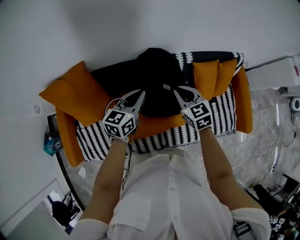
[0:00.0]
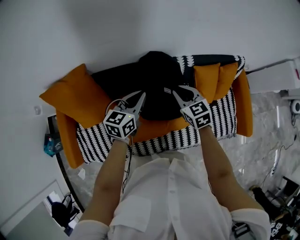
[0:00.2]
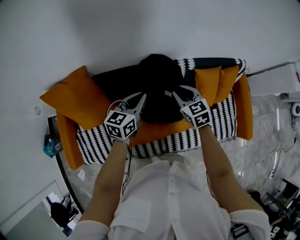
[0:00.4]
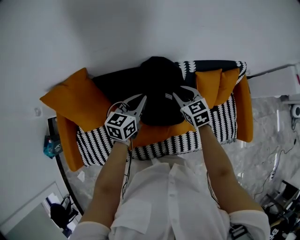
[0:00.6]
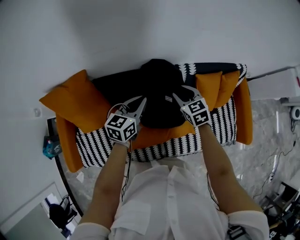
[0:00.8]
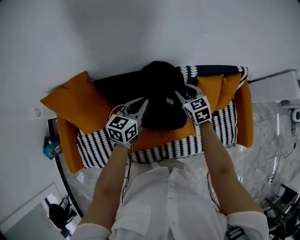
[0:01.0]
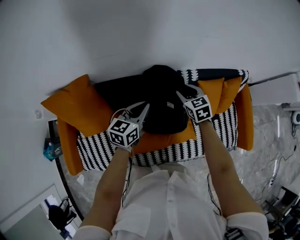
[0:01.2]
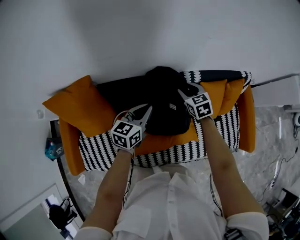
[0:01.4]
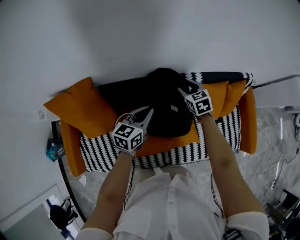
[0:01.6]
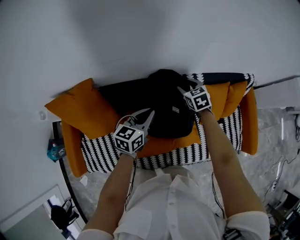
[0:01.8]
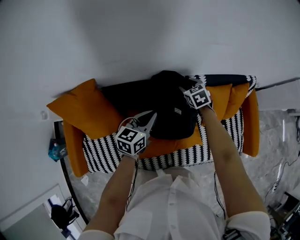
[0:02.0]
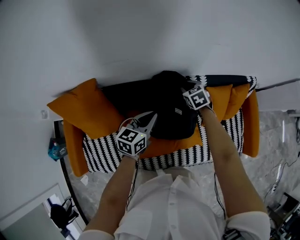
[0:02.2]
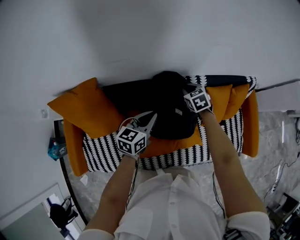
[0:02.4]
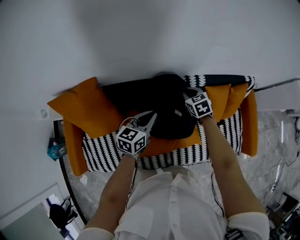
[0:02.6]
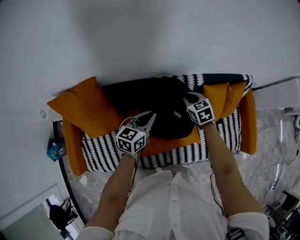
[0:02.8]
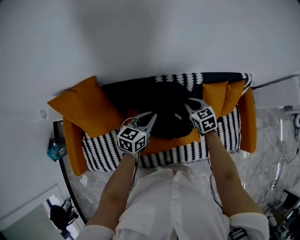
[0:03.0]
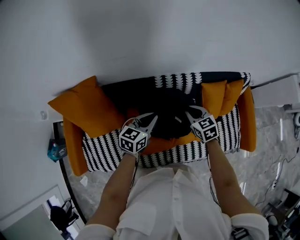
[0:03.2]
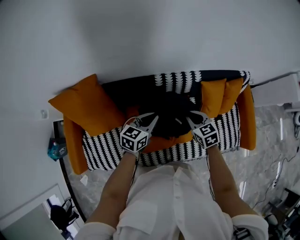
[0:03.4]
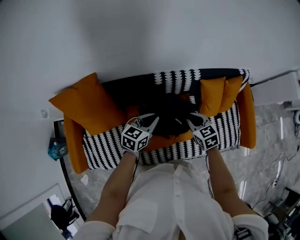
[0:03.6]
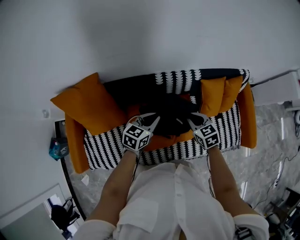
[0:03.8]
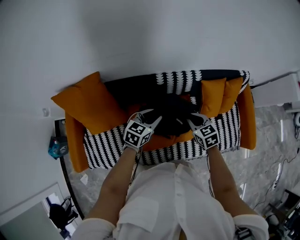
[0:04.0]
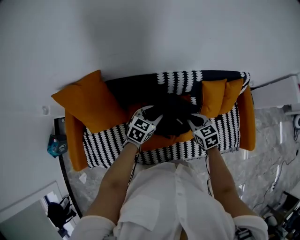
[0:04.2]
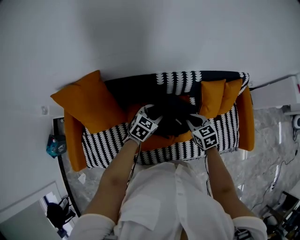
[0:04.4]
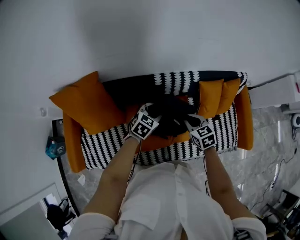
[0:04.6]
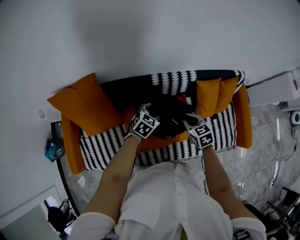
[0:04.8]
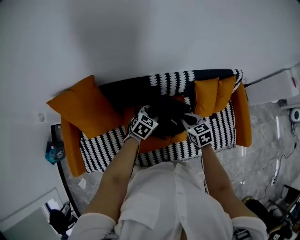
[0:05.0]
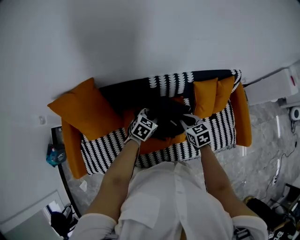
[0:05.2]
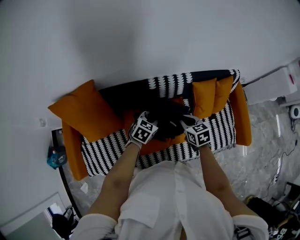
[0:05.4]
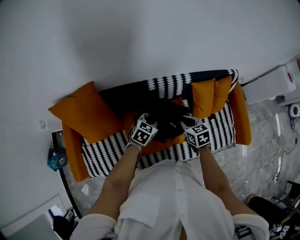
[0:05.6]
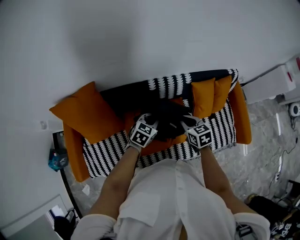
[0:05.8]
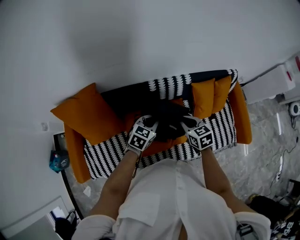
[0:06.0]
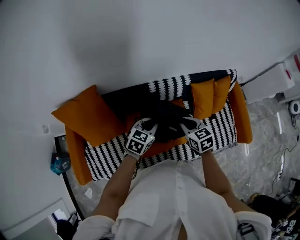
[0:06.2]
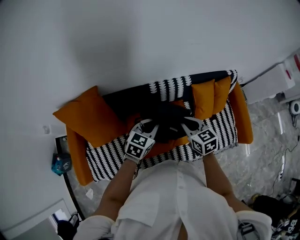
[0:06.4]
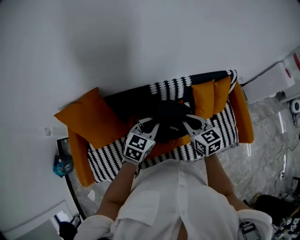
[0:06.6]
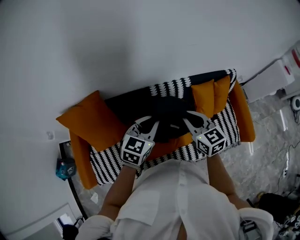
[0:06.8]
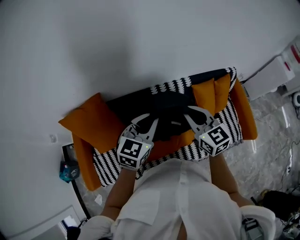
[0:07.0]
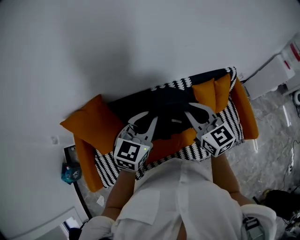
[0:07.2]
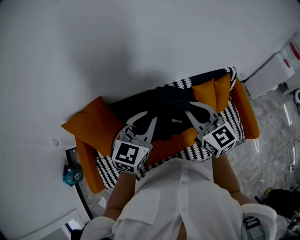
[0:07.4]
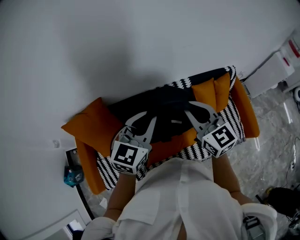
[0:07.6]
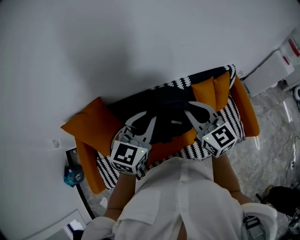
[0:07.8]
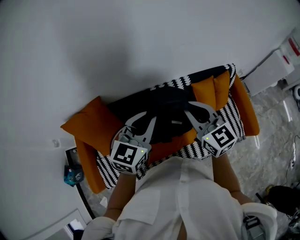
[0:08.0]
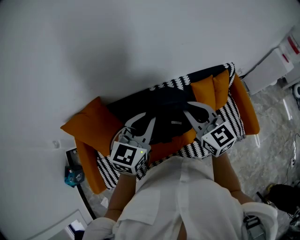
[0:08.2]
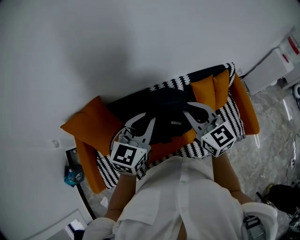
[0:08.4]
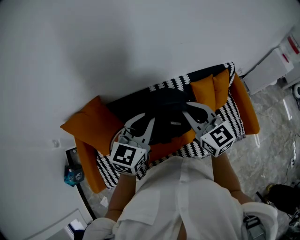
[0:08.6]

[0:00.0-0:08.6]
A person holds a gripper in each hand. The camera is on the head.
0:00.0 to 0:01.4: The right gripper heads forward and downward, covering roughly 15 cm, and opens up; the left gripper changes place by some 5 cm.
0:01.4 to 0:02.8: The right gripper closes up.
0:02.8 to 0:04.4: The left gripper is displaced downward by about 5 cm, swivels about 30 degrees, and opens up, while the right gripper is displaced backward by about 15 cm.
0:04.4 to 0:05.8: The left gripper closes up.
0:05.8 to 0:07.2: Both grippers travel together upward, roughly 25 cm. The left gripper rotates approximately 30 degrees, while the right gripper points its fingers some 30 degrees further upward.
0:07.2 to 0:08.6: The grippers move only a little.

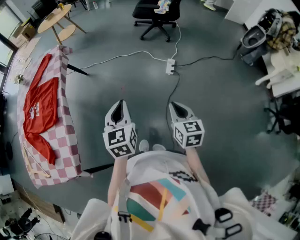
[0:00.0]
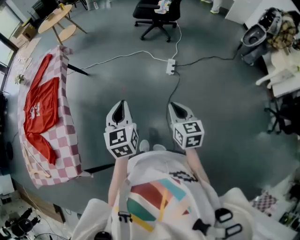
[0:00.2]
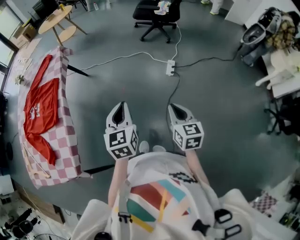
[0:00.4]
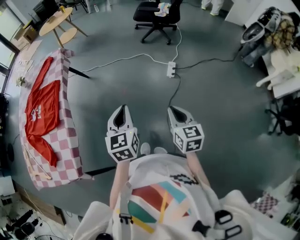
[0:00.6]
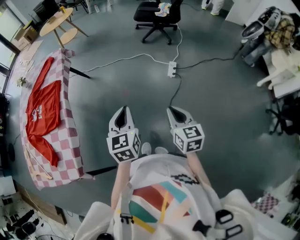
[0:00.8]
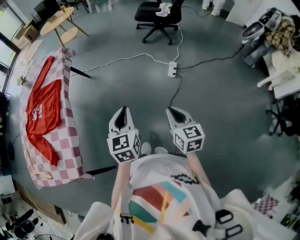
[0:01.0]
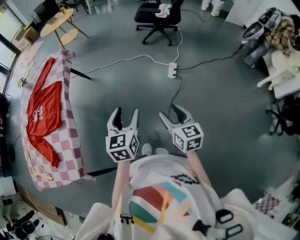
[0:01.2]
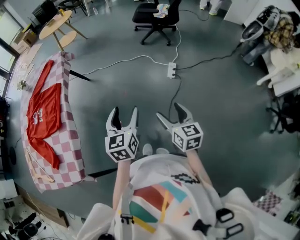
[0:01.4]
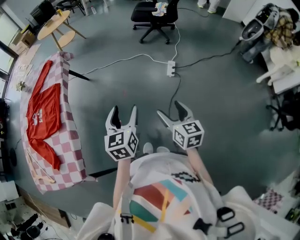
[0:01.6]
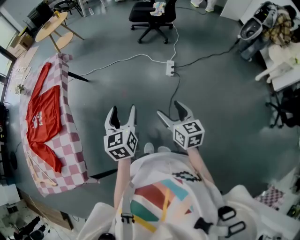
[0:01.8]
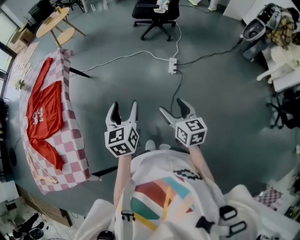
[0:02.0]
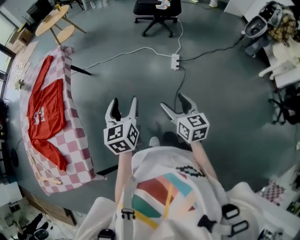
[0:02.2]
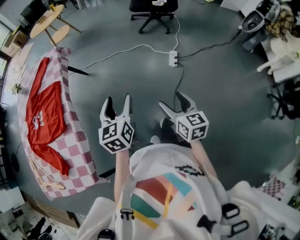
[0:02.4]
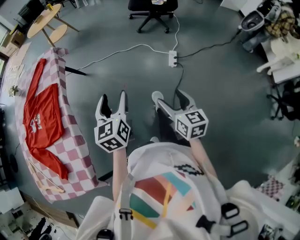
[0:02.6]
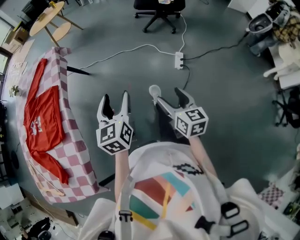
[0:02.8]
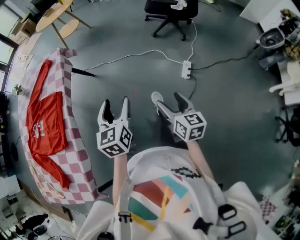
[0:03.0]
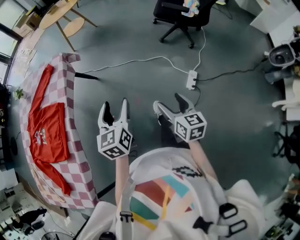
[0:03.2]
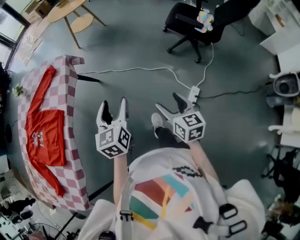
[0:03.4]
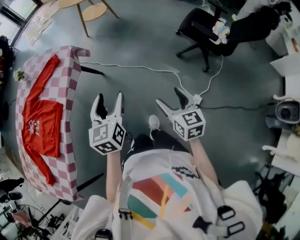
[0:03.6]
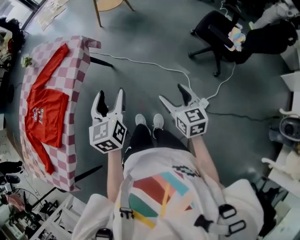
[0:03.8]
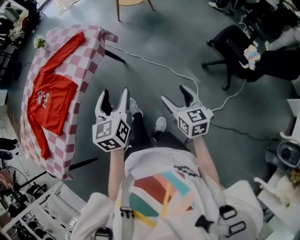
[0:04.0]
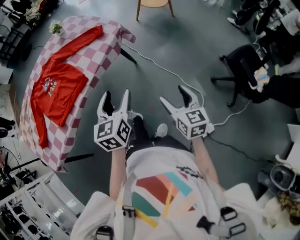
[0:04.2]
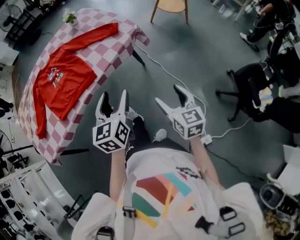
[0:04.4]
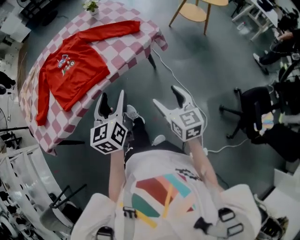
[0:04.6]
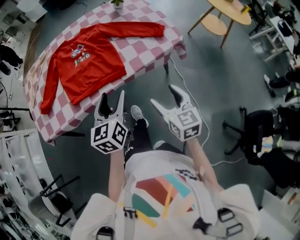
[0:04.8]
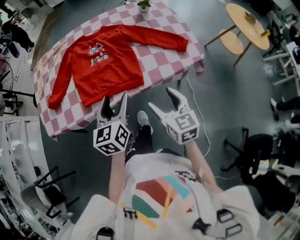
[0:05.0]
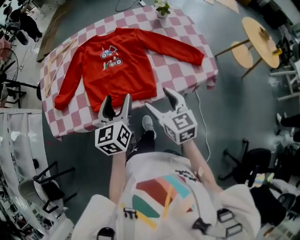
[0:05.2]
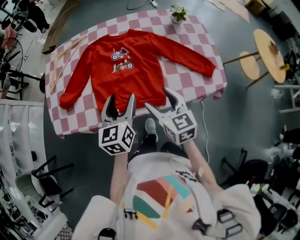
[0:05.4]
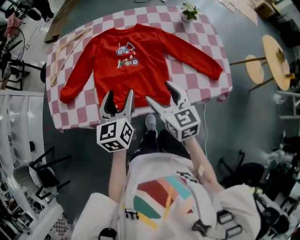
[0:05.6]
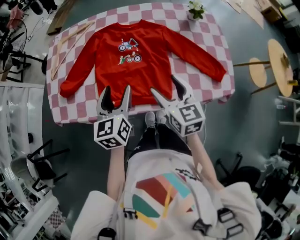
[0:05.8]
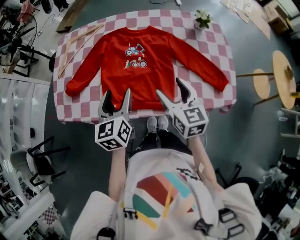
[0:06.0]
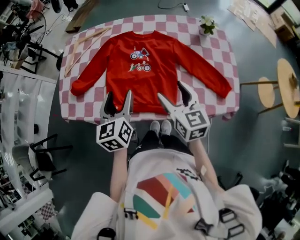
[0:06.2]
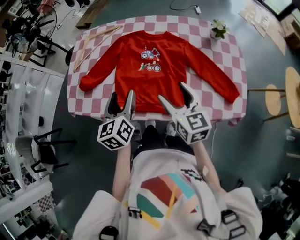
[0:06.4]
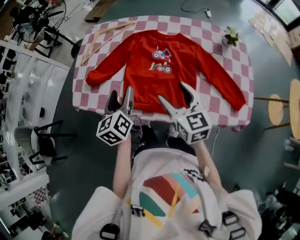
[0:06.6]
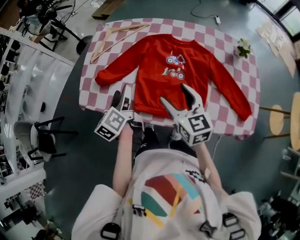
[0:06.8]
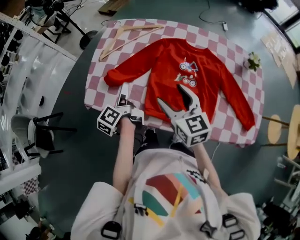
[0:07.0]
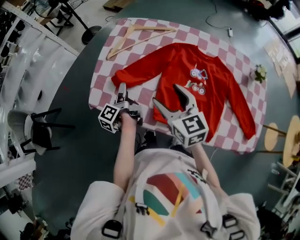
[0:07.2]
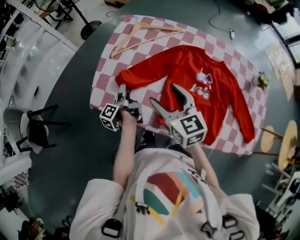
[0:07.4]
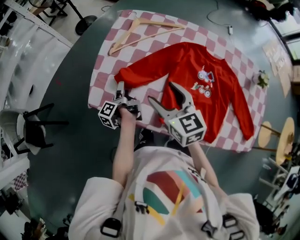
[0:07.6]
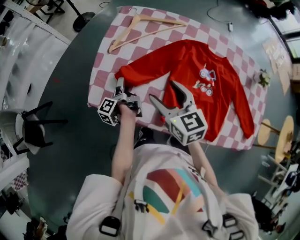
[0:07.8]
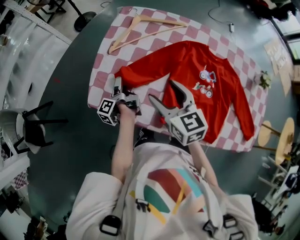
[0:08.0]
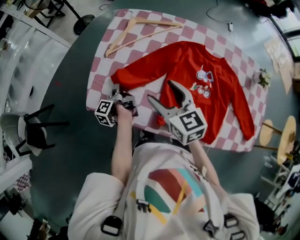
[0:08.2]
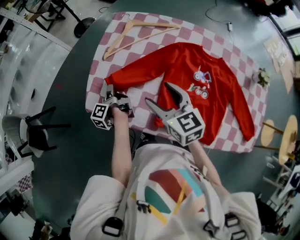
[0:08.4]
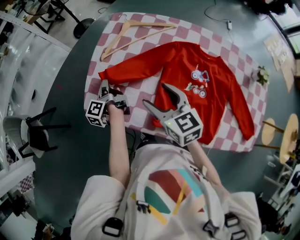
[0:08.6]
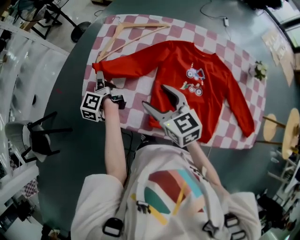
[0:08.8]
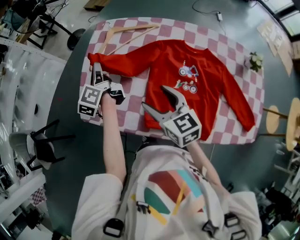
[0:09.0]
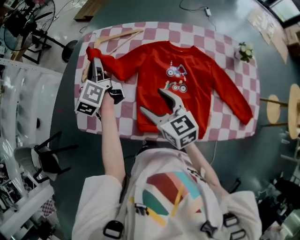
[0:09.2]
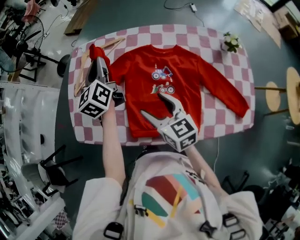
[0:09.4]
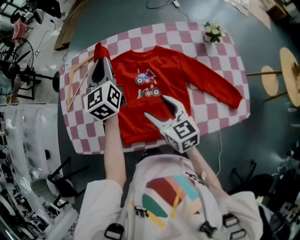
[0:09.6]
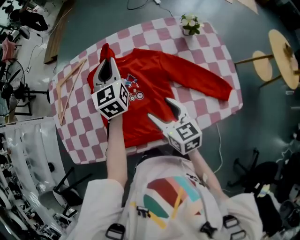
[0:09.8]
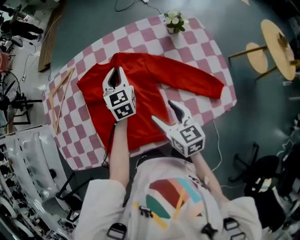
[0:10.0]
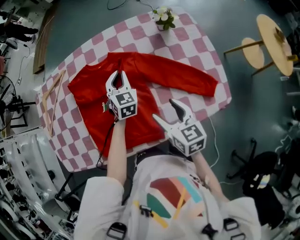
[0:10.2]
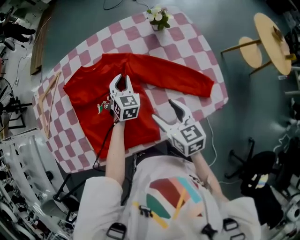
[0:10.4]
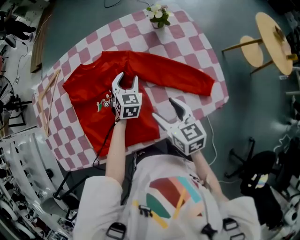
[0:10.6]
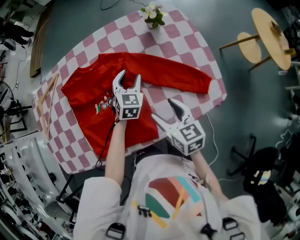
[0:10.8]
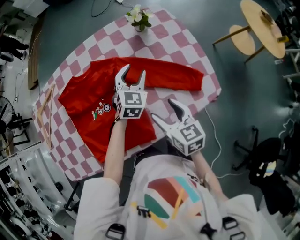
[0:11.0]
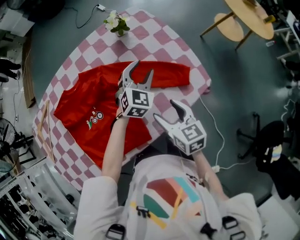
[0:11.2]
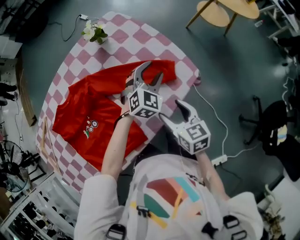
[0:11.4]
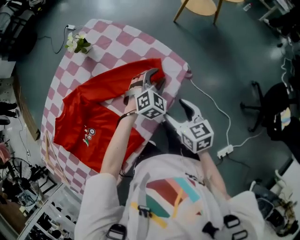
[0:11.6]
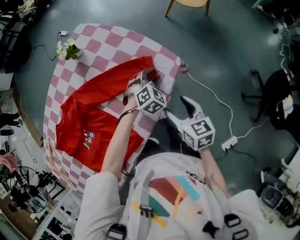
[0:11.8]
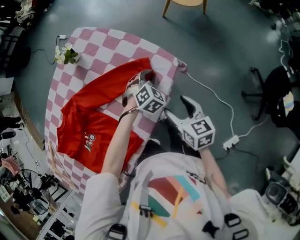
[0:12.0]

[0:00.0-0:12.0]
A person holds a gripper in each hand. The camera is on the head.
0:00.0 to 0:01.6: The left gripper opens its fingers. Meanwhile the right gripper opens its fingers.
0:01.6 to 0:03.0: The right gripper shifts roughly 20 cm forward. The left gripper goes about 25 cm forward and to the left.
0:03.0 to 0:04.4: The right gripper moves approximately 40 cm, and changes its angle by approximately 60 degrees; the left gripper changes place by approximately 30 cm, and turns by about 50 degrees.
0:04.4 to 0:06.0: The right gripper moves some 50 cm, and swivels roughly 40 degrees, while the left gripper moves some 40 cm, and swivels approximately 50 degrees.
0:06.0 to 0:07.6: The right gripper moves roughly 35 cm, and swivels some 30 degrees. The left gripper changes place by roughly 40 cm, and twists approximately 90 degrees counterclockwise, seen from behind.
0:07.6 to 0:09.0: The left gripper heads upward, forward and to the right, covering approximately 20 cm, rolls clockwise, seen from behind, by some 50 degrees, and closes up, while the right gripper moves to the right, some 5 cm.
0:09.0 to 0:10.4: The pair of grippers is taken roughly 50 cm. The right gripper rotates some 40 degrees. The left gripper rolls clockwise, seen from behind, by some 90 degrees.
0:10.4 to 0:12.0: The right gripper moves approximately 25 cm, and changes its angle by roughly 40 degrees. The left gripper moves some 40 cm, turns by about 70 degrees, and opens, then closes once more.

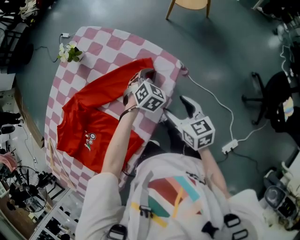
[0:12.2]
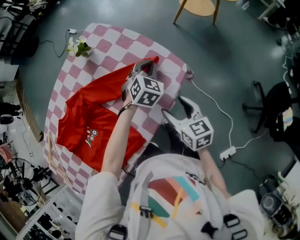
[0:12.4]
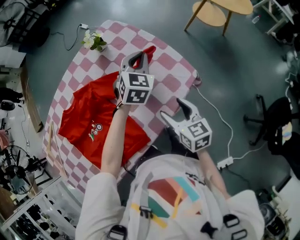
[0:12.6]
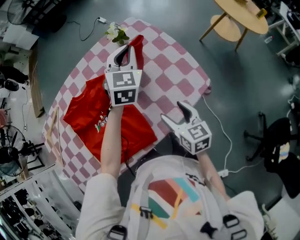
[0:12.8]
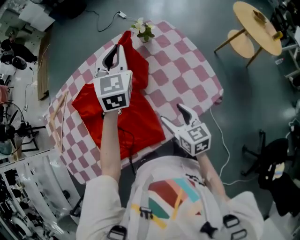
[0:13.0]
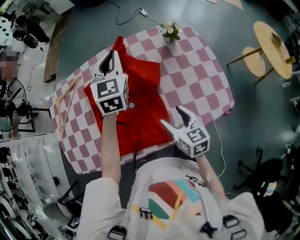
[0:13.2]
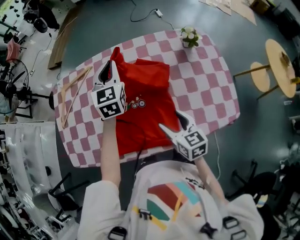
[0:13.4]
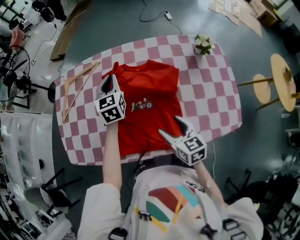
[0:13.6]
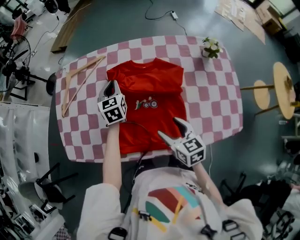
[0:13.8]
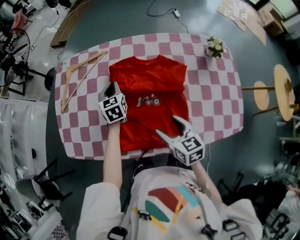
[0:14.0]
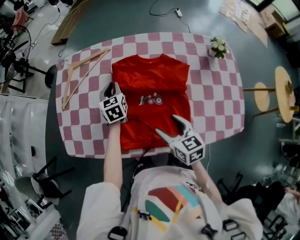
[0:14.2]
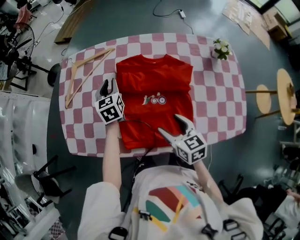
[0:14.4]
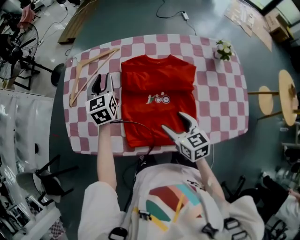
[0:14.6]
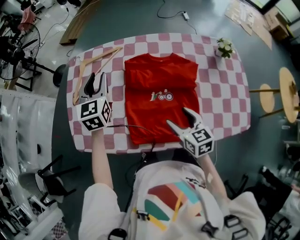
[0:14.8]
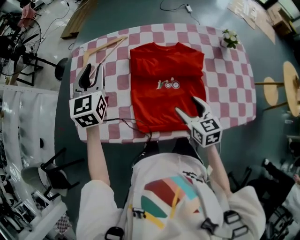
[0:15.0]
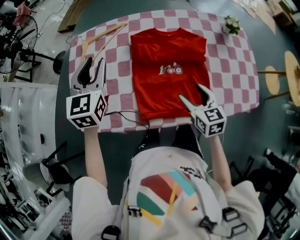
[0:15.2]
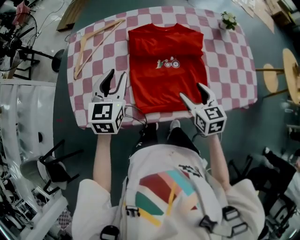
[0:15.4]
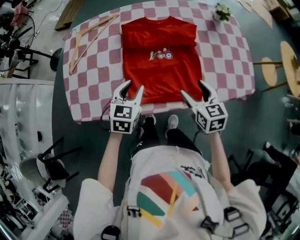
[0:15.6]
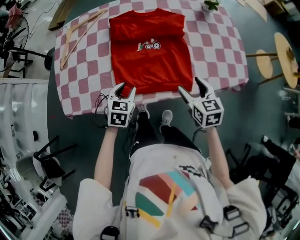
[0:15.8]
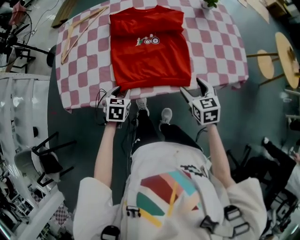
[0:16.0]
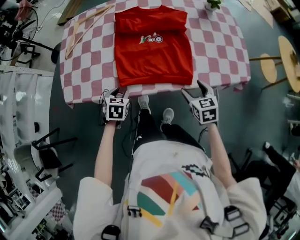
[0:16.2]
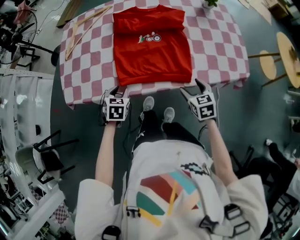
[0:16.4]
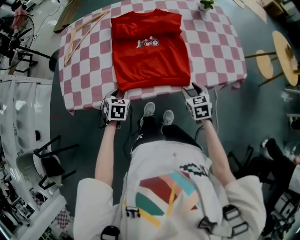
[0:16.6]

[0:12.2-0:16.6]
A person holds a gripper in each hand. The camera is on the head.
0:12.2 to 0:13.6: The right gripper changes place by roughly 35 cm, and changes its angle by about 50 degrees, while the left gripper moves roughly 70 cm, and swivels approximately 90 degrees.
0:13.6 to 0:15.2: The left gripper heads to the left and upward, covering approximately 20 cm, and opens its fingers; the right gripper is displaced to the left by approximately 5 cm.
0:15.2 to 0:16.6: The right gripper shifts roughly 20 cm backward, downward and to the right, and closes. Meanwhile the left gripper moves downward and backward, roughly 40 cm, and points its fingers some 40 degrees further downward.
